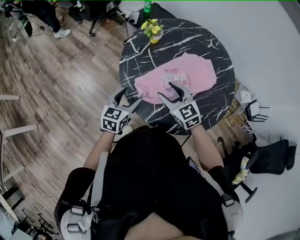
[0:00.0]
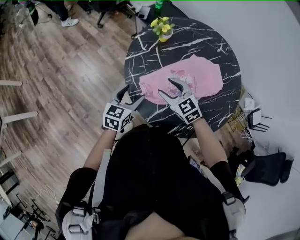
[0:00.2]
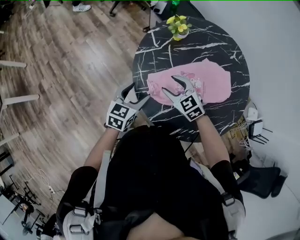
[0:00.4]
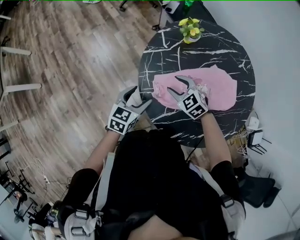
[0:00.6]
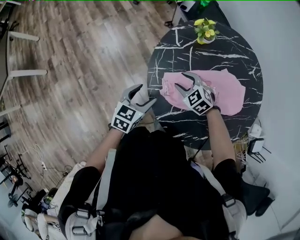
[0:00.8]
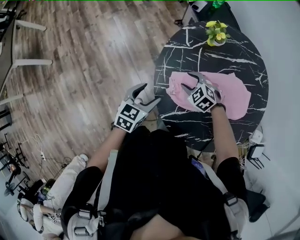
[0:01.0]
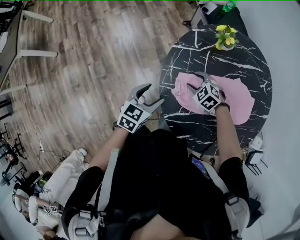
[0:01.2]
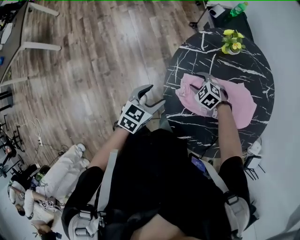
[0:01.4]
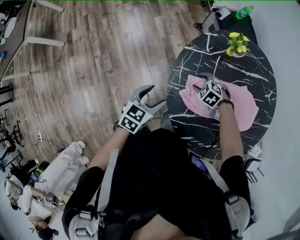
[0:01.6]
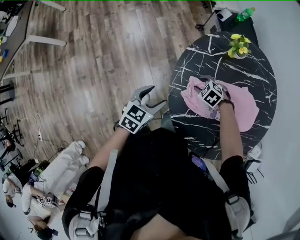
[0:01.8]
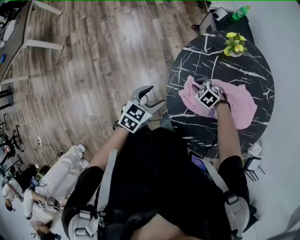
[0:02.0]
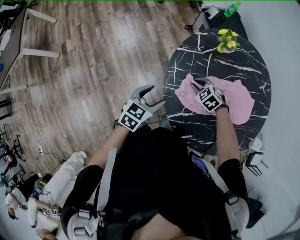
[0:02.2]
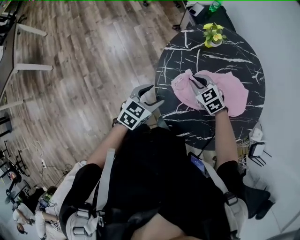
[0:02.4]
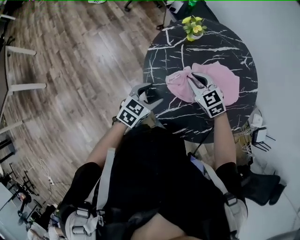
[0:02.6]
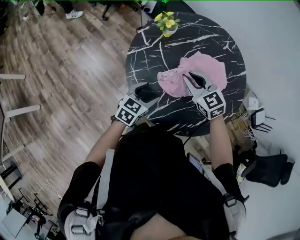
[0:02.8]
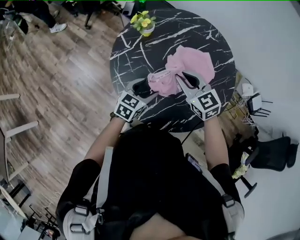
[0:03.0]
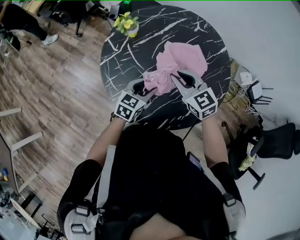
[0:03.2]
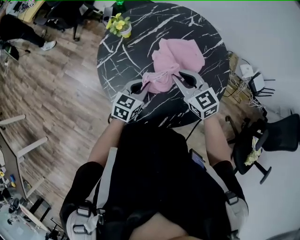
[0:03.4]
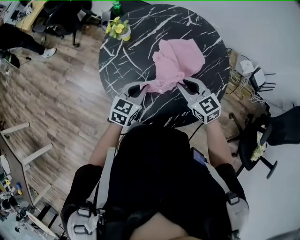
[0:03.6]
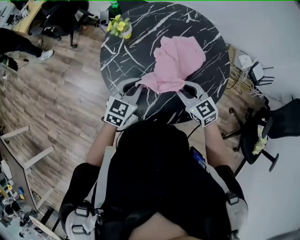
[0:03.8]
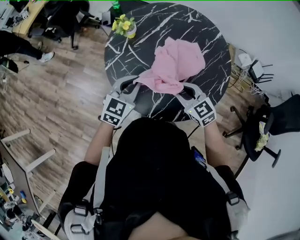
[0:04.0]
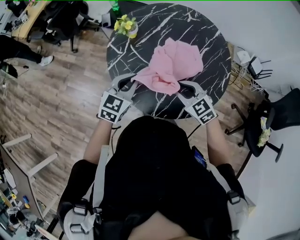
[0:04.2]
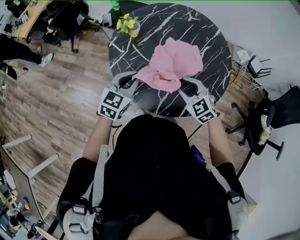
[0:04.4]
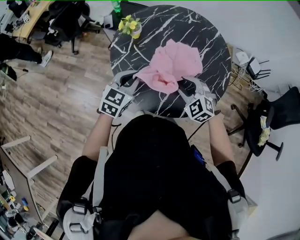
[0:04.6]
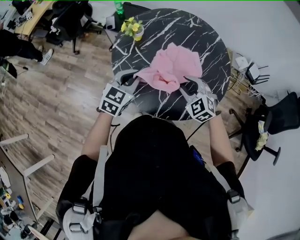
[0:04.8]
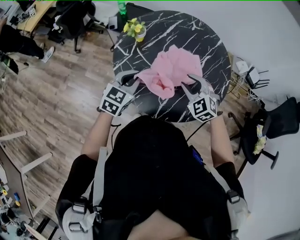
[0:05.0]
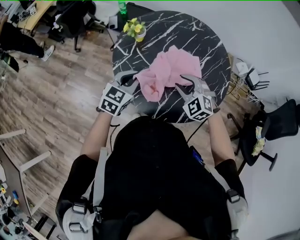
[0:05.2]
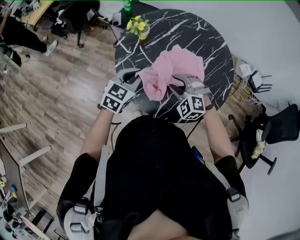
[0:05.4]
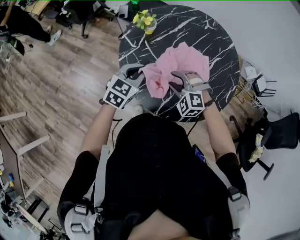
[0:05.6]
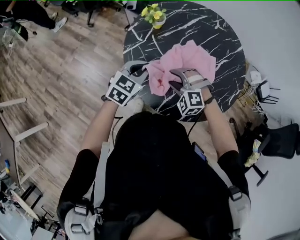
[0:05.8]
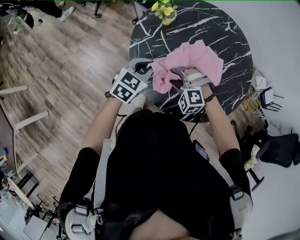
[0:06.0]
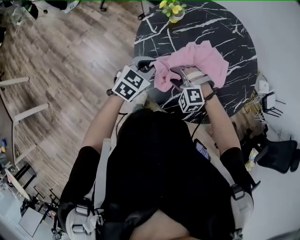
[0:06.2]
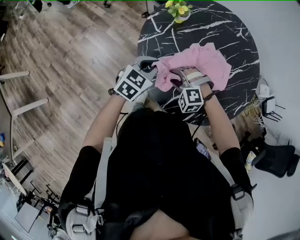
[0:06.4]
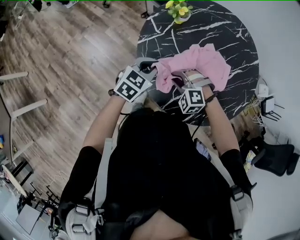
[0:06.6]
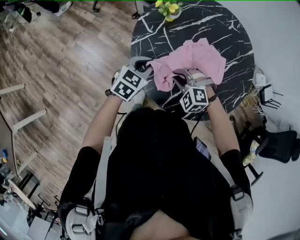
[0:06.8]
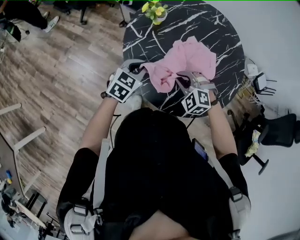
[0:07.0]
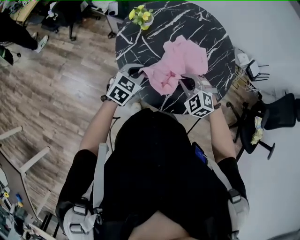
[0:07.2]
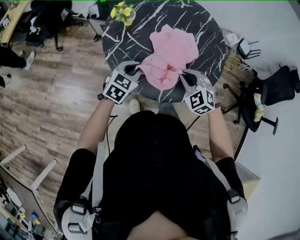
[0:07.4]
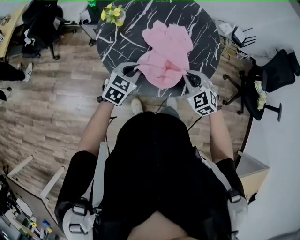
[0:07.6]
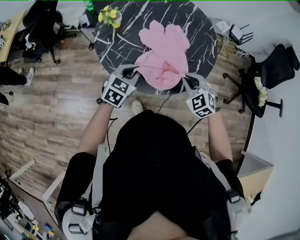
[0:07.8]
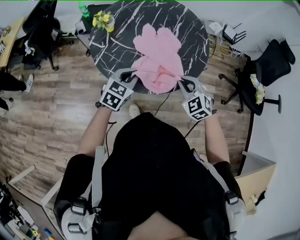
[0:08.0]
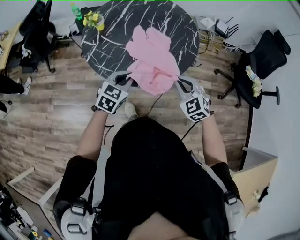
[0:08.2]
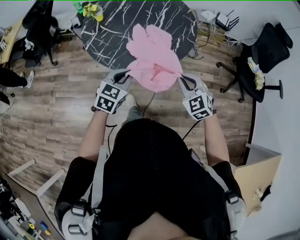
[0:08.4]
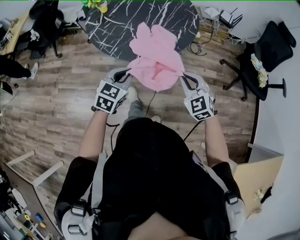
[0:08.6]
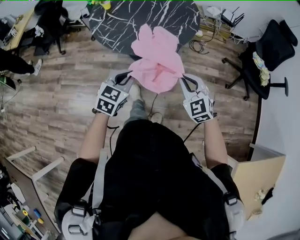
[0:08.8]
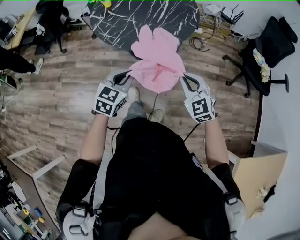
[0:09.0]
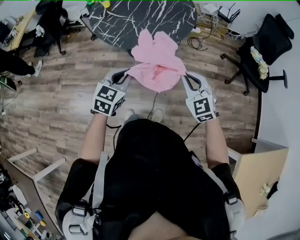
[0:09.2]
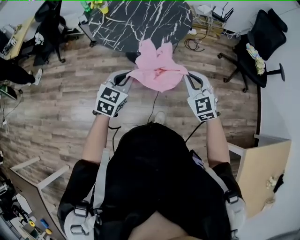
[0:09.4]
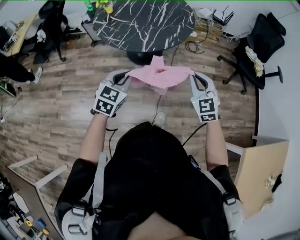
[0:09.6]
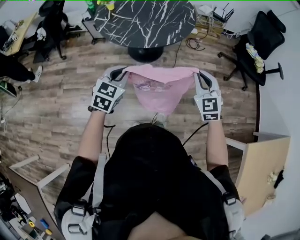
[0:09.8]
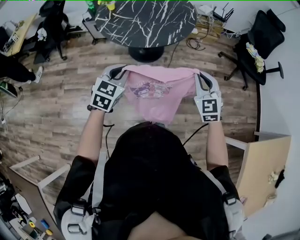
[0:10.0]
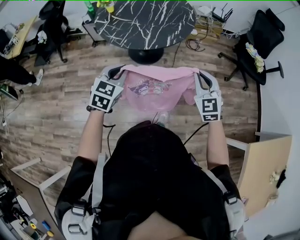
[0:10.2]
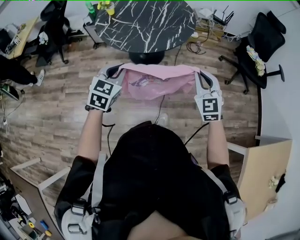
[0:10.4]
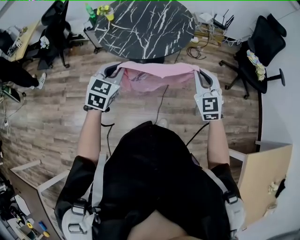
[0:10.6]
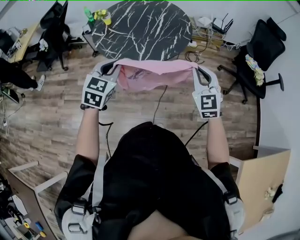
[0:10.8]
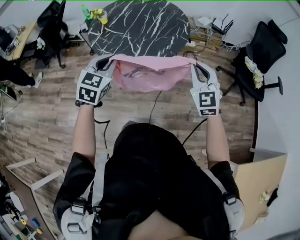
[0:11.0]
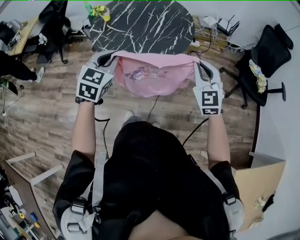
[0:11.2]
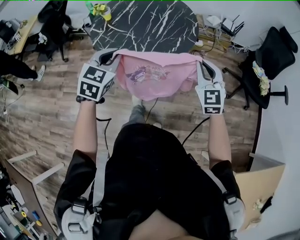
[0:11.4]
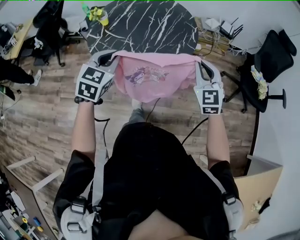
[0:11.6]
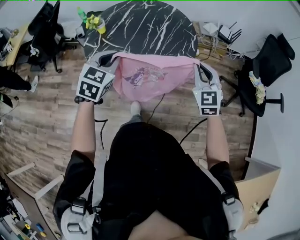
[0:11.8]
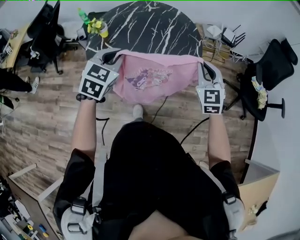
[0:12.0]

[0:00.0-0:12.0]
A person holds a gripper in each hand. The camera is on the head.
0:00.0 to 0:01.6: The left gripper moves roughly 10 cm, and rotates about 20 degrees, while the right gripper goes approximately 20 cm downward, and points its fingers approximately 40 degrees further downward.
0:01.6 to 0:03.0: The left gripper changes place by approximately 20 cm, and rotates some 40 degrees; the right gripper is displaced upward by some 25 cm, angles its fingers upward, by approximately 40 degrees, and closes up.
0:03.0 to 0:04.4: The right gripper goes approximately 10 cm backward, and swivels roughly 20 degrees. The left gripper goes approximately 10 cm upward and to the left, turns by roughly 20 degrees, and closes.
0:04.4 to 0:06.0: The left gripper shifts by some 5 cm; the right gripper heads to the left and downward, covering about 15 cm, and twists about 50 degrees counterclockwise, seen from behind.
0:06.0 to 0:07.6: The left gripper ends up some 5 cm from where it was, and rotates about 30 degrees, while the right gripper shifts by some 15 cm, rotates around the line of its fingers by some 60 degrees, clockwise from behind, and closes up.
0:07.6 to 0:09.0: The two grippers go roughly 35 cm backward and to the right.
0:09.0 to 0:10.4: The left gripper moves to the left and upward, some 10 cm. Meanwhile the right gripper goes about 5 cm upward, and turns by roughly 20 degrees.
0:10.4 to 0:12.0: The two grippers go roughly 35 cm forward.

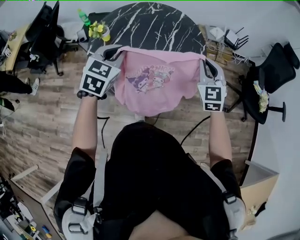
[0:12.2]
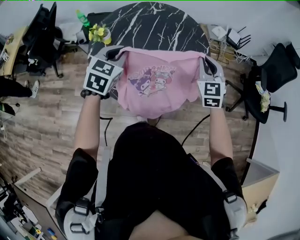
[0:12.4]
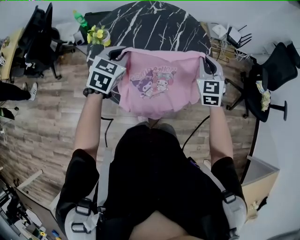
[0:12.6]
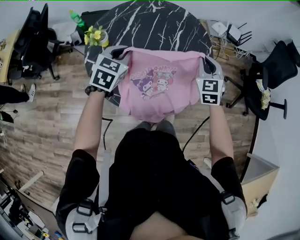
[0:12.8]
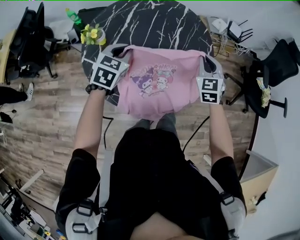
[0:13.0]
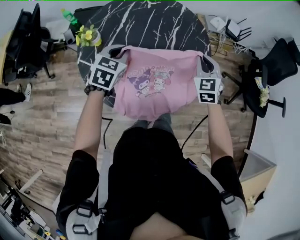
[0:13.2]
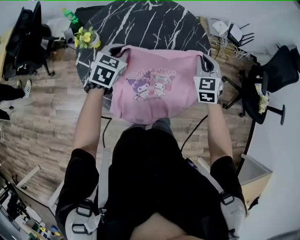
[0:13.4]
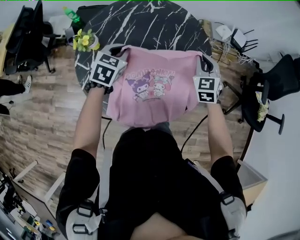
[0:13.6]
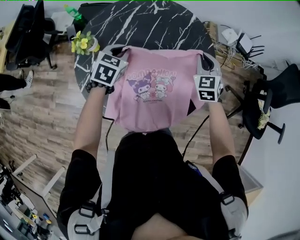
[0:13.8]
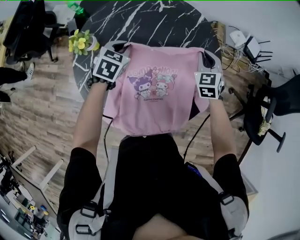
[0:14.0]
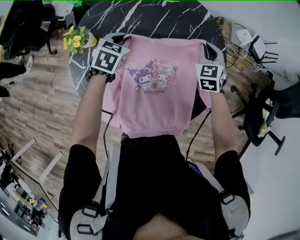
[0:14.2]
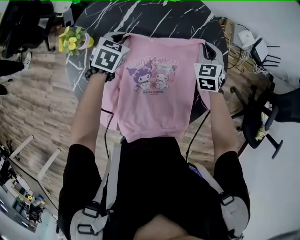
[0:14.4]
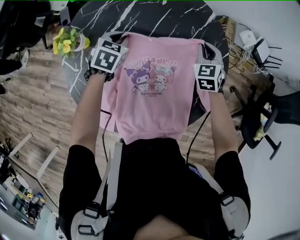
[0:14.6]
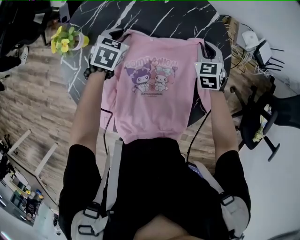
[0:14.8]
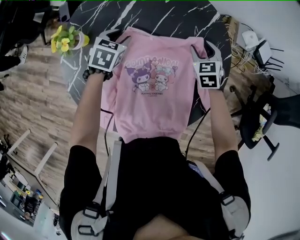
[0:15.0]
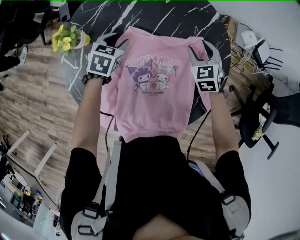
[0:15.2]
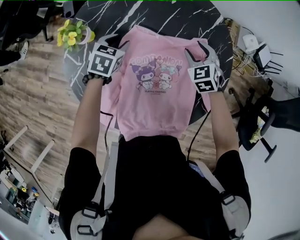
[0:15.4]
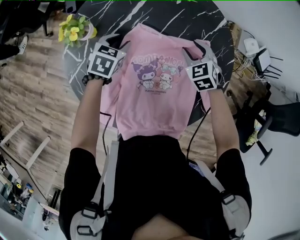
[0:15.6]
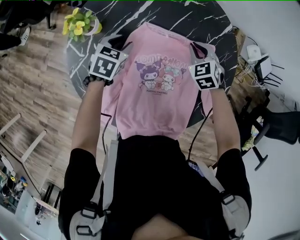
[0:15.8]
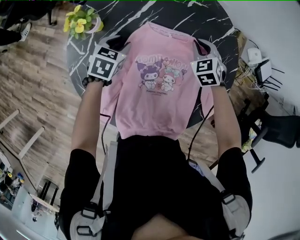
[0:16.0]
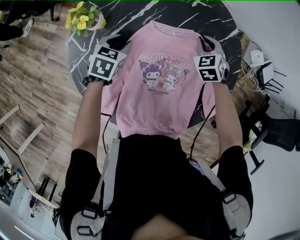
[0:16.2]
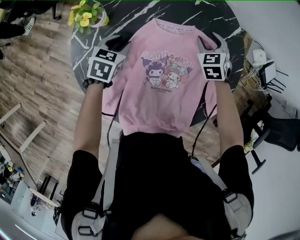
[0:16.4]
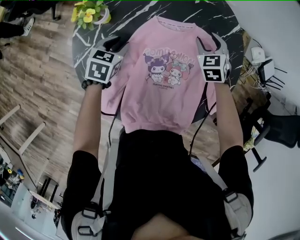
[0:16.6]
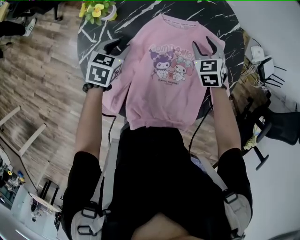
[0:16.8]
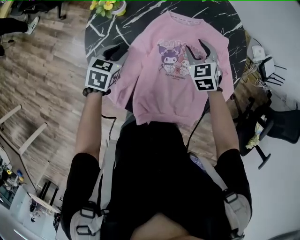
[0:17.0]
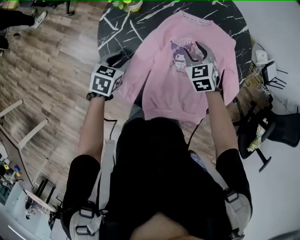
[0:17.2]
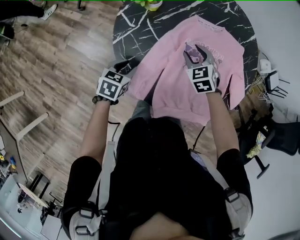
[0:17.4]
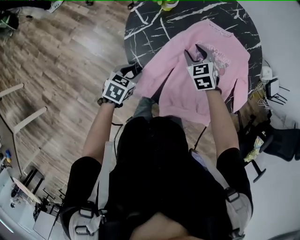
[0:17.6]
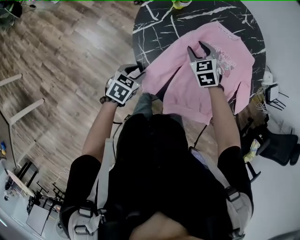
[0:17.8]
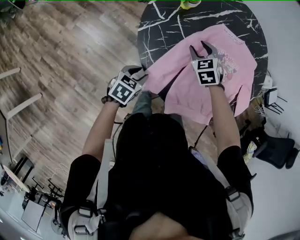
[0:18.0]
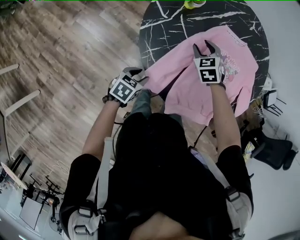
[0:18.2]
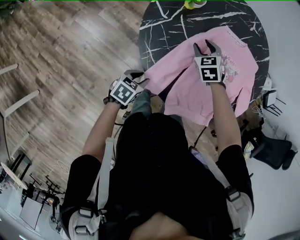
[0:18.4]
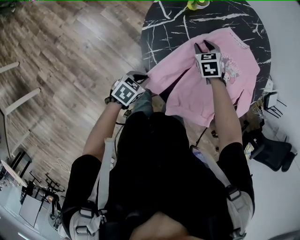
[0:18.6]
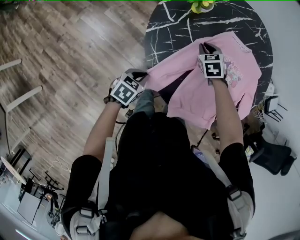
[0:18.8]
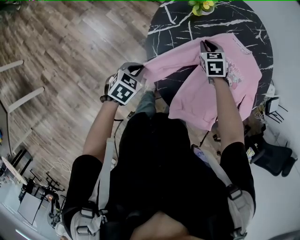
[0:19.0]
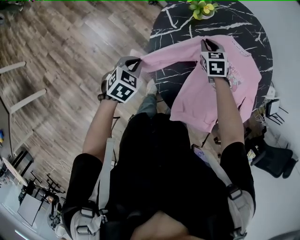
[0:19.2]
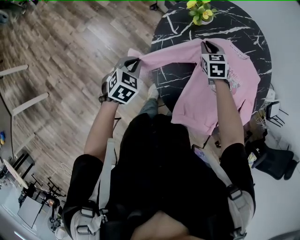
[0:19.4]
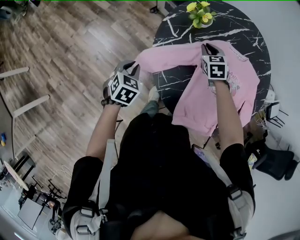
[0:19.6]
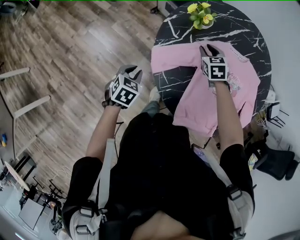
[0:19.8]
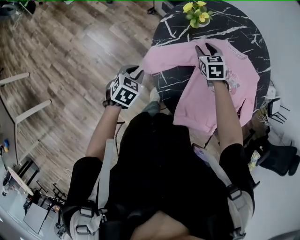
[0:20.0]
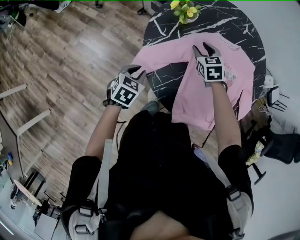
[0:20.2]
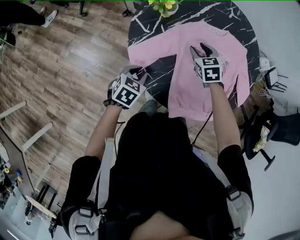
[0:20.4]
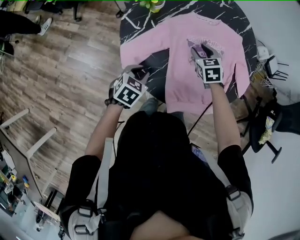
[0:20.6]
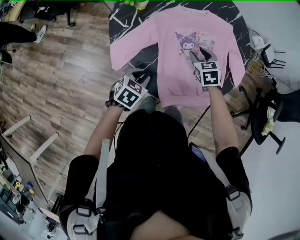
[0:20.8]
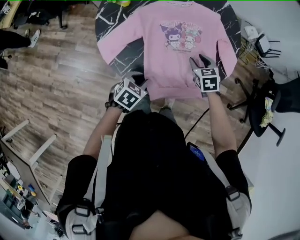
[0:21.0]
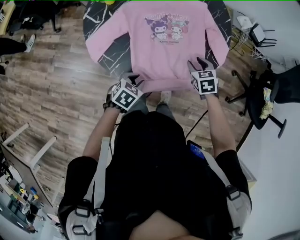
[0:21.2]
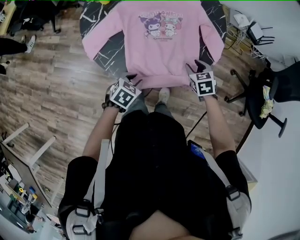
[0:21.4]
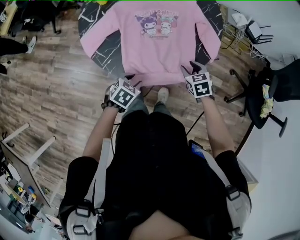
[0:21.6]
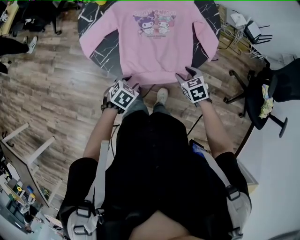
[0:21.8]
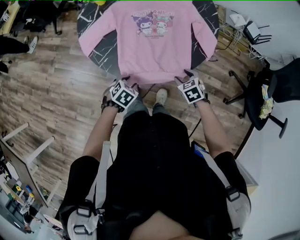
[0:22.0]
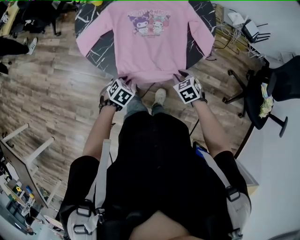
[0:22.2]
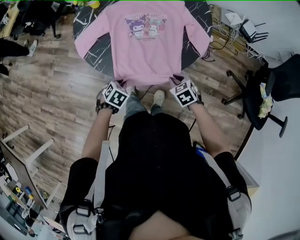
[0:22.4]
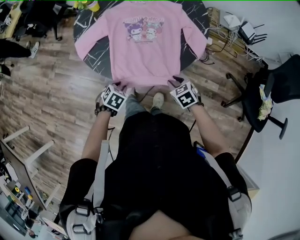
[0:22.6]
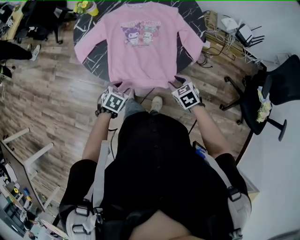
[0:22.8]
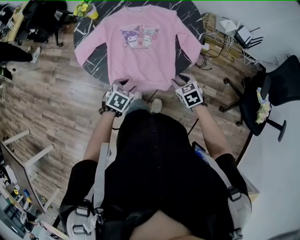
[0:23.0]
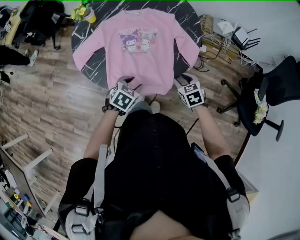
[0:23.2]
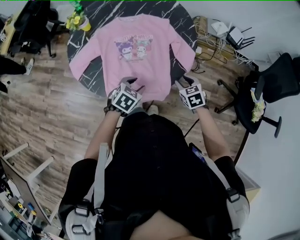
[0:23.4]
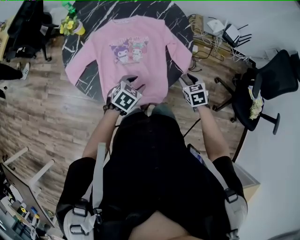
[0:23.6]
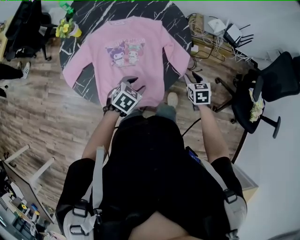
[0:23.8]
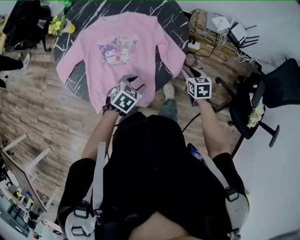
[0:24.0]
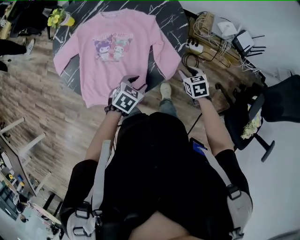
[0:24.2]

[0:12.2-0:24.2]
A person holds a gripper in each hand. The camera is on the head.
0:12.2 to 0:13.8: Both grippers travel together forward and downward, some 25 cm.
0:13.8 to 0:15.2: The two grippers go roughly 15 cm downward and forward. The left gripper opens up. The right gripper opens up.
0:15.2 to 0:16.6: The right gripper travels to the left by some 5 cm, and closes, then opens again, while the left gripper goes approximately 10 cm backward and to the left.
0:16.6 to 0:18.2: The right gripper is displaced to the left and backward by approximately 30 cm. The left gripper goes roughly 30 cm backward.
0:18.2 to 0:19.8: The right gripper ends up roughly 10 cm from where it was, while the left gripper ends up about 15 cm from where it was, and rotates roughly 20 degrees.
0:19.8 to 0:21.2: The left gripper shifts by approximately 30 cm, and rotates roughly 40 degrees, while the right gripper changes place by some 40 cm, and changes its angle by roughly 30 degrees.
0:21.2 to 0:22.6: The left gripper moves roughly 10 cm; the right gripper changes place by approximately 15 cm.
0:22.6 to 0:24.2: The right gripper moves approximately 30 cm; the left gripper moves some 30 cm.
